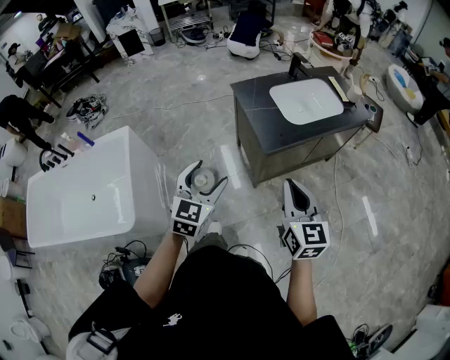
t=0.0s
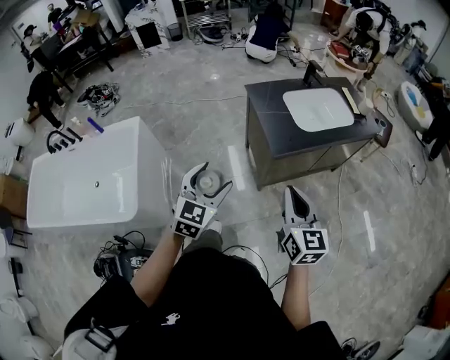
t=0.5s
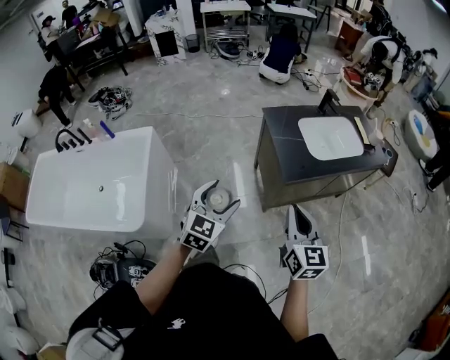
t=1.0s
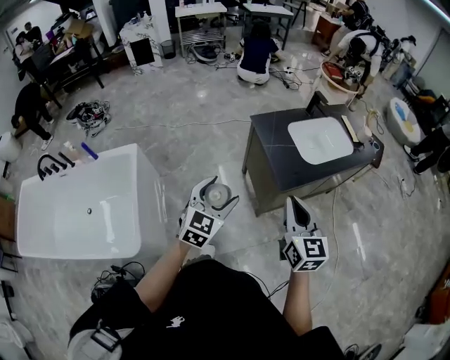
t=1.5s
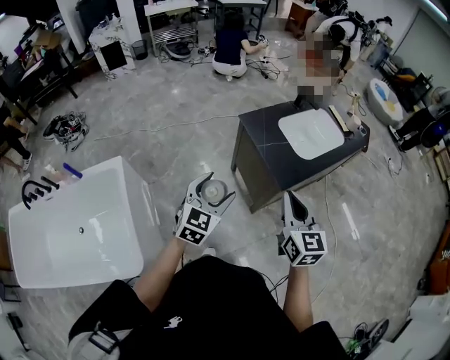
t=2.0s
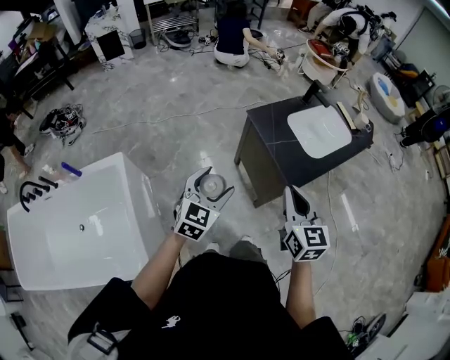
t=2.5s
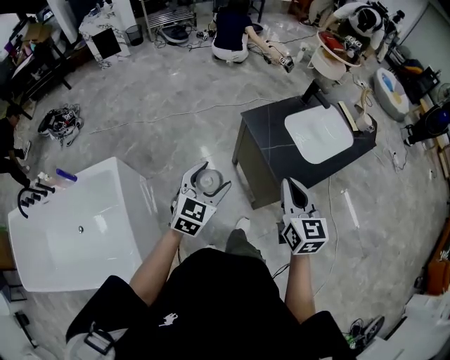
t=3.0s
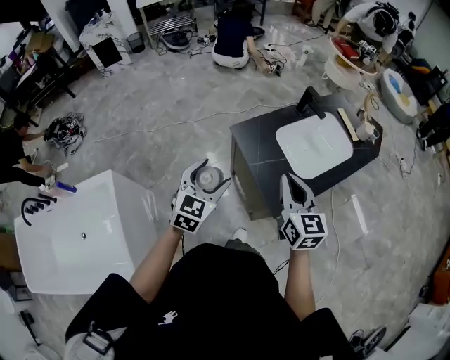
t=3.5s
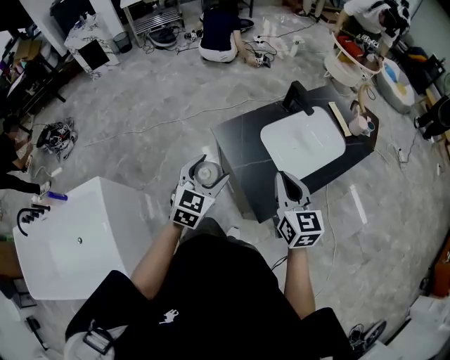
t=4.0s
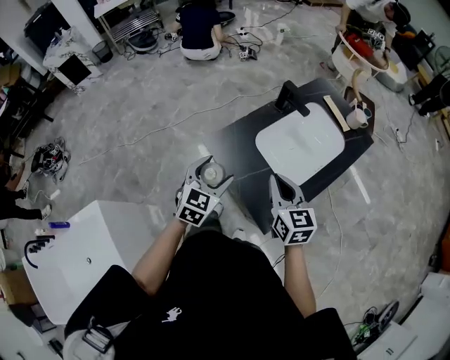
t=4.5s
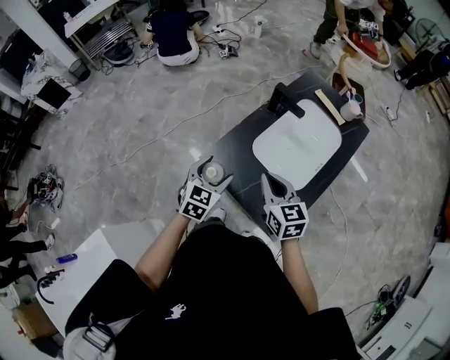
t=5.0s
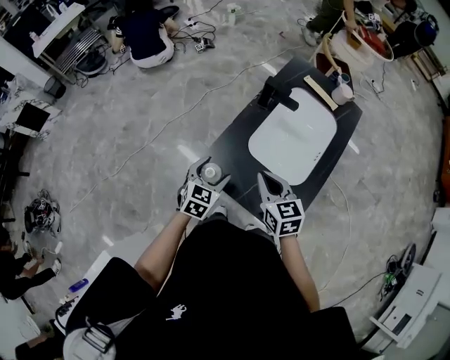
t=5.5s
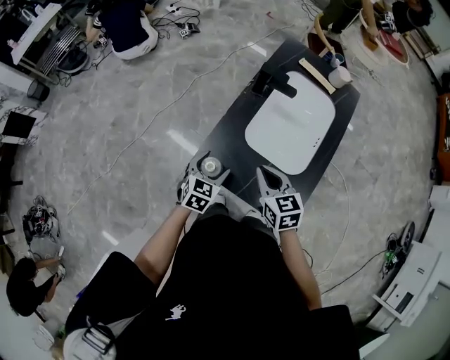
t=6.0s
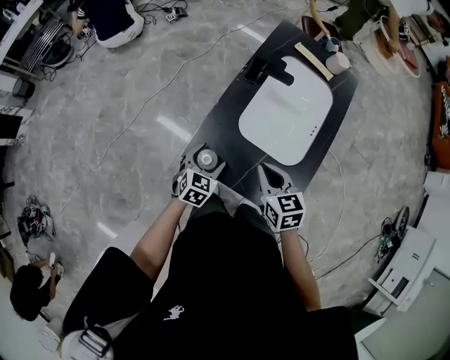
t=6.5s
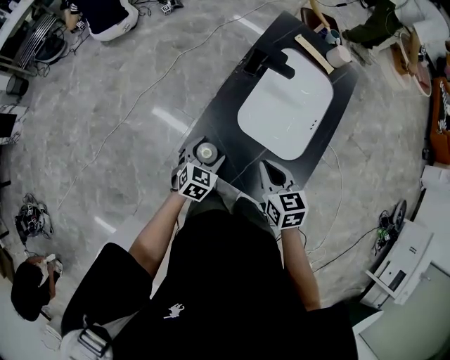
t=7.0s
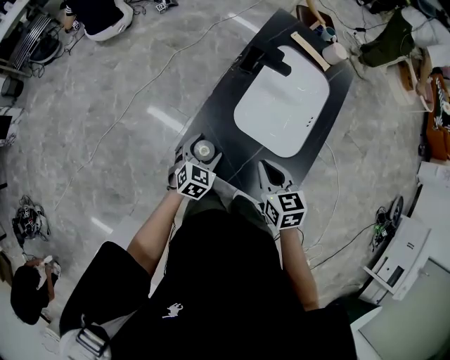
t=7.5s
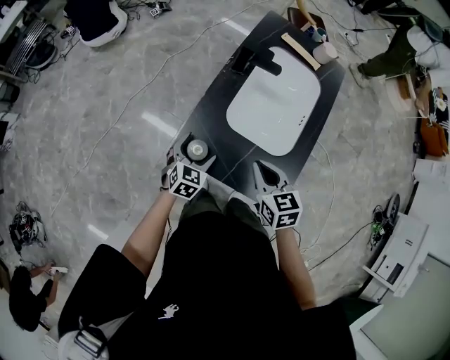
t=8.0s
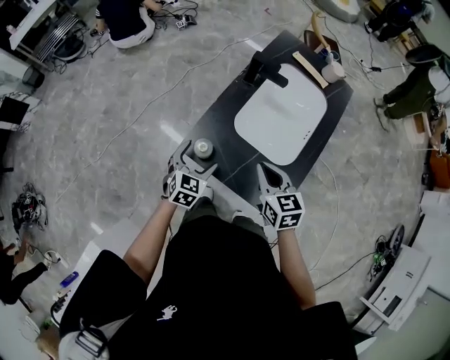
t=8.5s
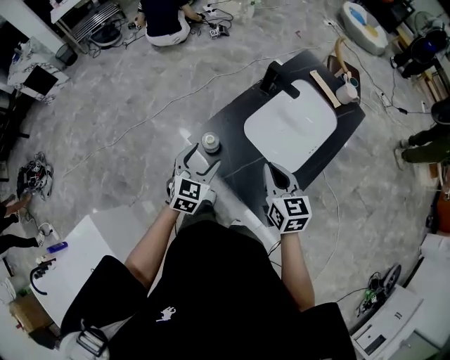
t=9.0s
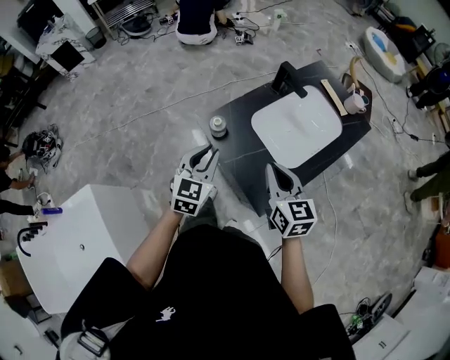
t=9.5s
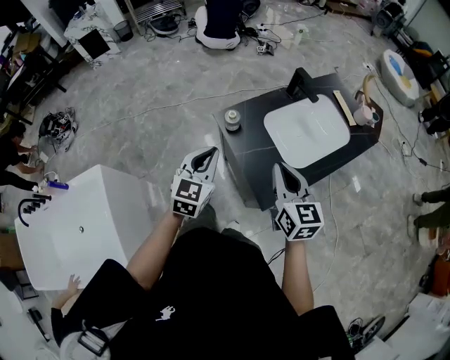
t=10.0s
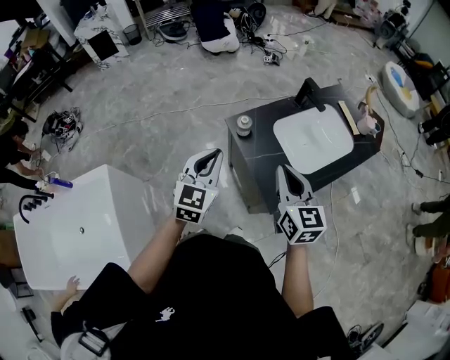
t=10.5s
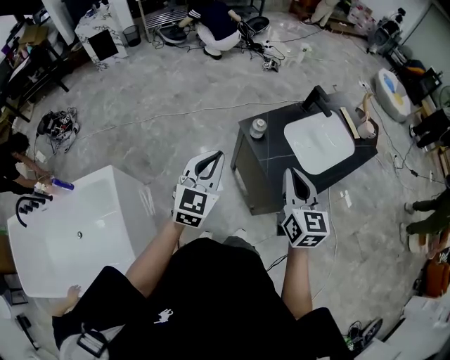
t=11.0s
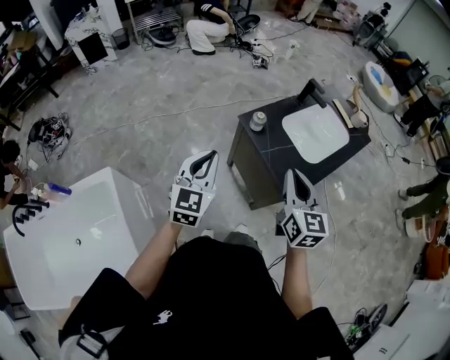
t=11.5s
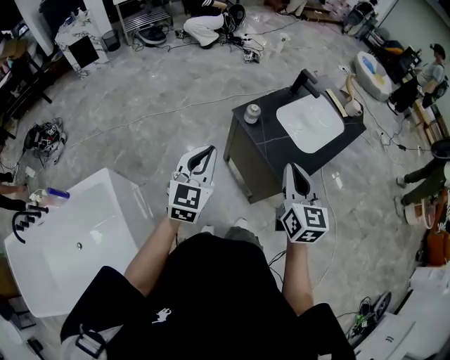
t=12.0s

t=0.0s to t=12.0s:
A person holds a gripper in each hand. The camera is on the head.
t=0.0s to t=2.0s: The right gripper shifts roughly 20 cm to the left and forward; the left gripper is displaced forward and to the left by some 20 cm.
t=2.0s to t=4.0s: Both grippers move forward, about 25 cm.
t=4.0s to t=6.0s: The left gripper ends up about 30 cm from where it was, and turns by approximately 30 degrees, while the right gripper changes place by roughly 20 cm, and swivels approximately 30 degrees.
t=6.0s to t=8.0s: The left gripper ends up approximately 5 cm from where it was.
t=8.0s to t=10.0s: The left gripper moves upward, some 25 cm, swivels about 40 degrees, and closes. Meanwhile the right gripper goes roughly 15 cm upward, and swivels about 40 degrees.
t=10.0s to t=12.0s: The left gripper shifts about 20 cm to the left, backward and upward. The right gripper travels backward, to the left and upward by about 20 cm.

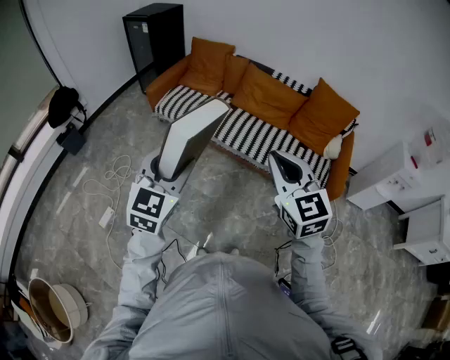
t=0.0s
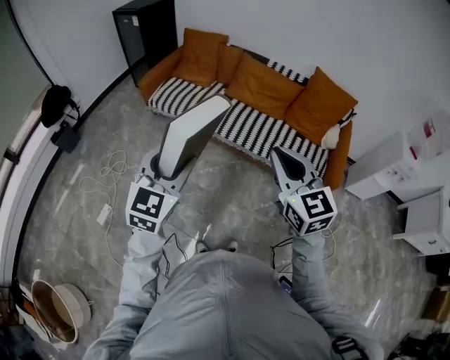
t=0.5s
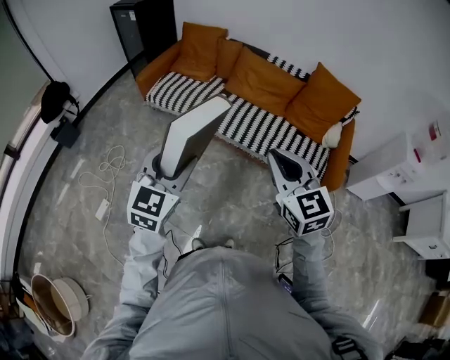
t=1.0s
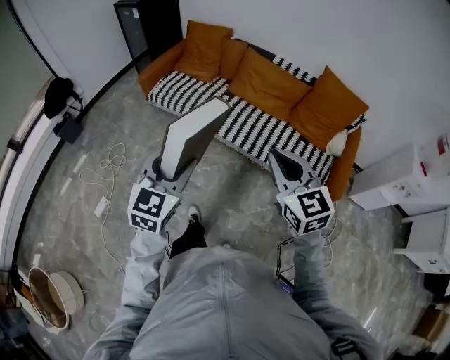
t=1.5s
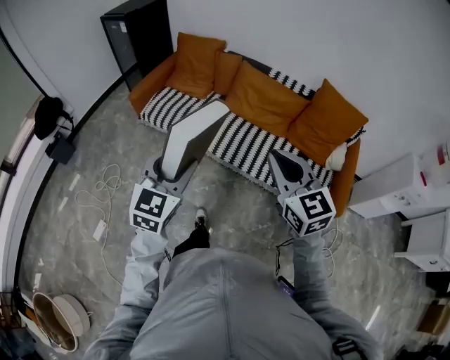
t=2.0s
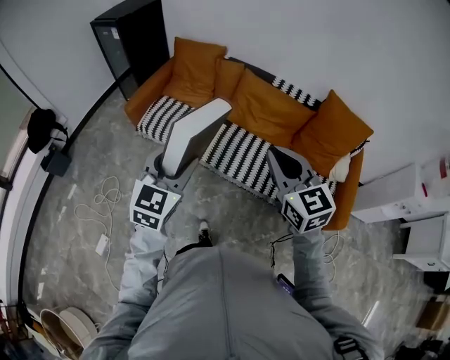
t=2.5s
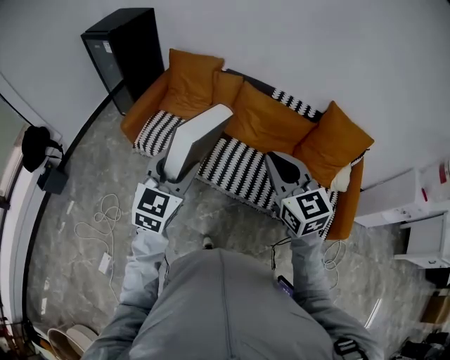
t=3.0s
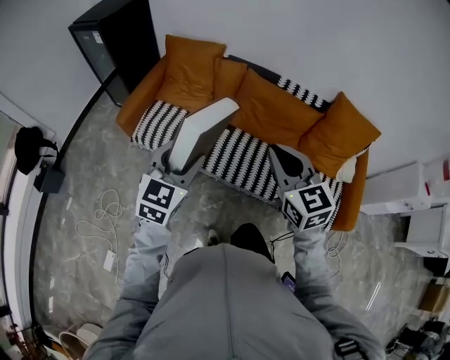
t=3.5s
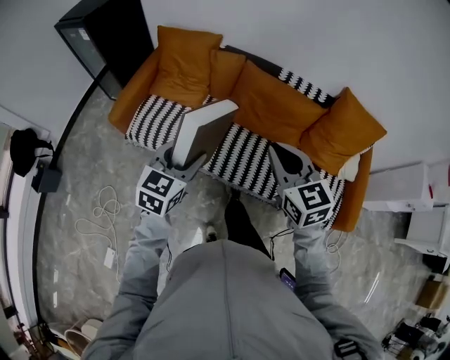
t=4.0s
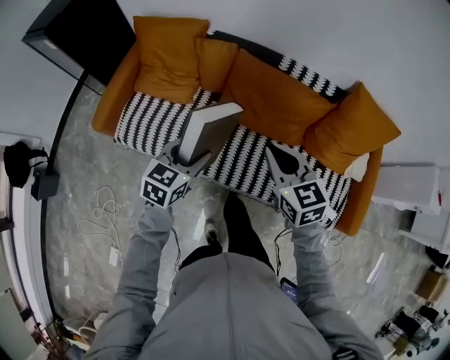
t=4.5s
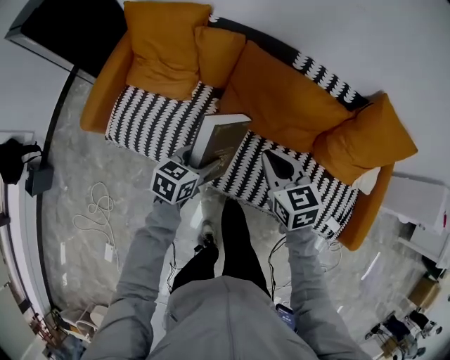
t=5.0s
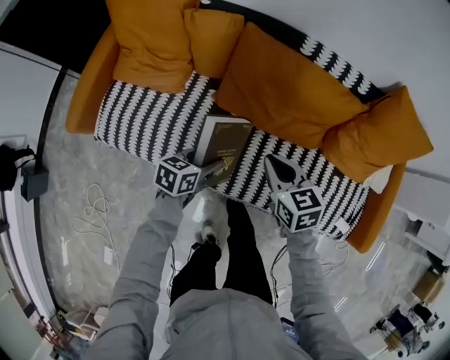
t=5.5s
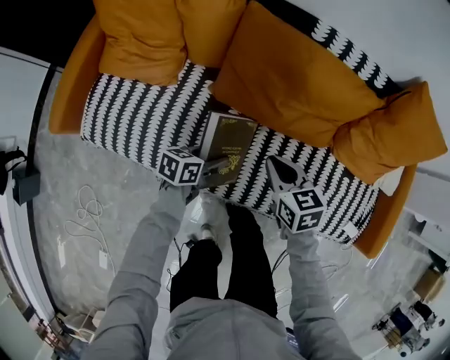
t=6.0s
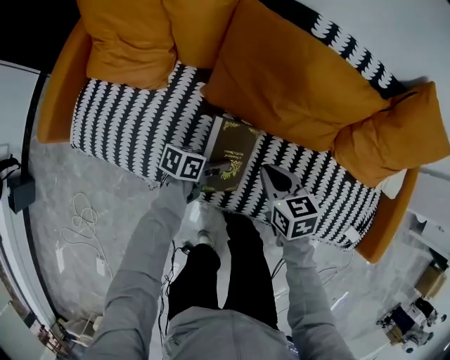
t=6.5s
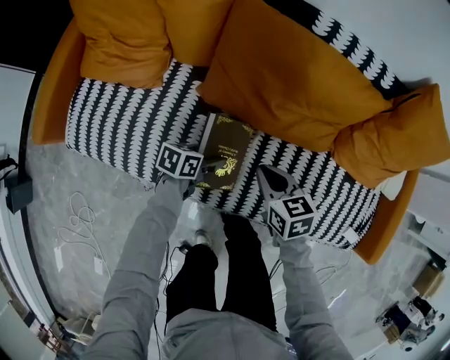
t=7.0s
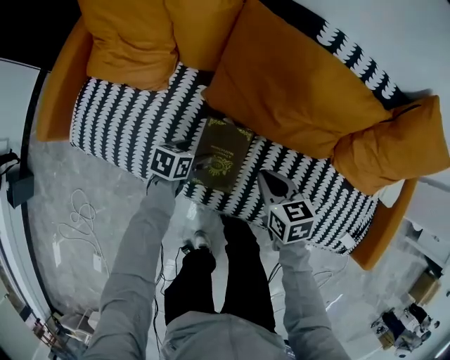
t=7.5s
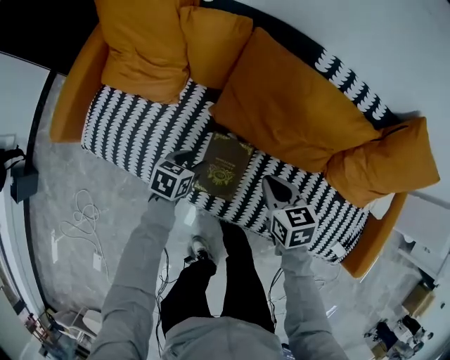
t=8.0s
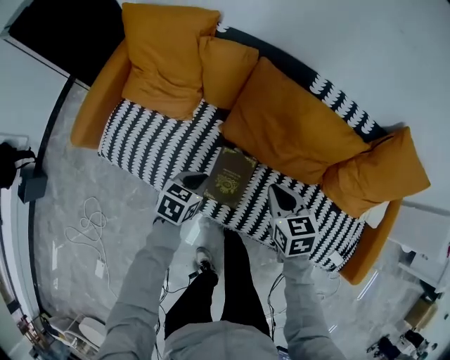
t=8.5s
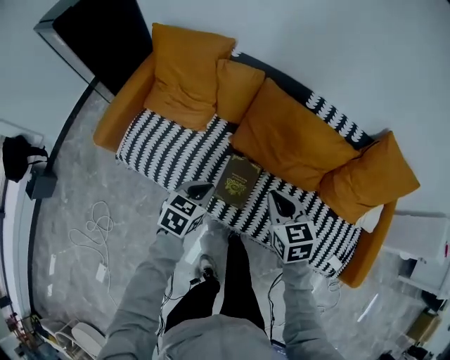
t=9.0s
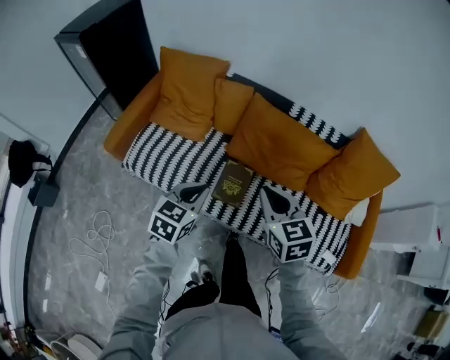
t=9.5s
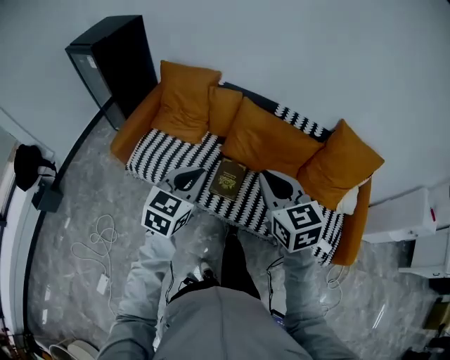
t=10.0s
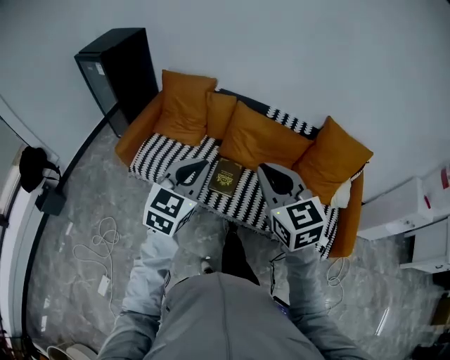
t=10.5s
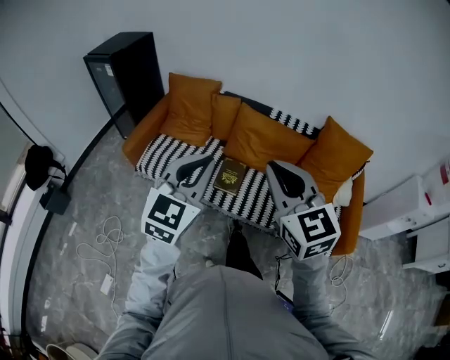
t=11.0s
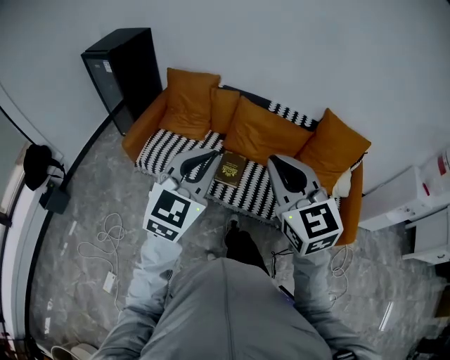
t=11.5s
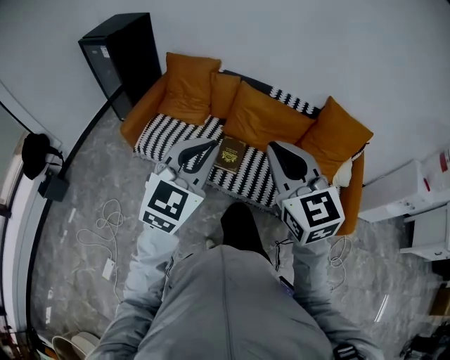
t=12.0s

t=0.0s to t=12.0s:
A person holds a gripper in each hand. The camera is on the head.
t=0.0s to t=2.0s: The two grippers go roughly 20 cm forward.
t=2.0s to t=4.0s: The two grippers go approximately 30 cm forward. The left gripper swivels approximately 20 degrees.
t=4.0s to t=6.0s: The left gripper shifts approximately 50 cm downward, and swivels approximately 50 degrees, while the right gripper is displaced downward and forward by roughly 50 cm, and swivels roughly 30 degrees.
t=6.0s to t=8.0s: The left gripper heads to the left, covering approximately 10 cm, and turns by roughly 20 degrees.
t=8.0s to t=10.0s: The grippers both shift upward and backward by approximately 50 cm. The right gripper turns by roughly 30 degrees; the left gripper swivels approximately 40 degrees, and closes its fingers.
t=10.0s to t=12.0s: The grippers both shift backward and upward by some 20 cm. The left gripper changes its angle by about 20 degrees.

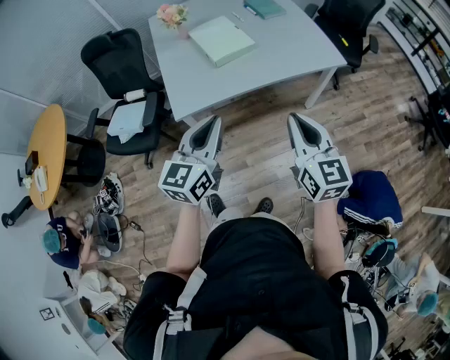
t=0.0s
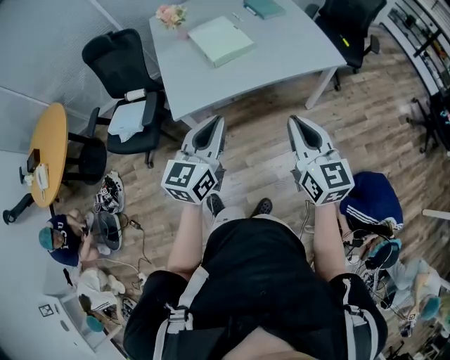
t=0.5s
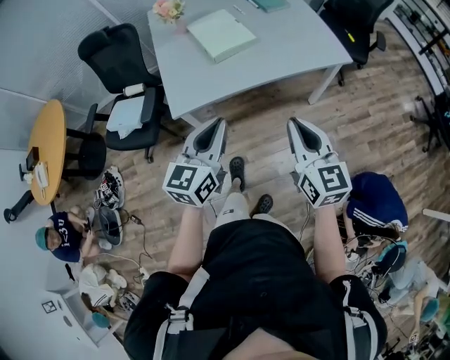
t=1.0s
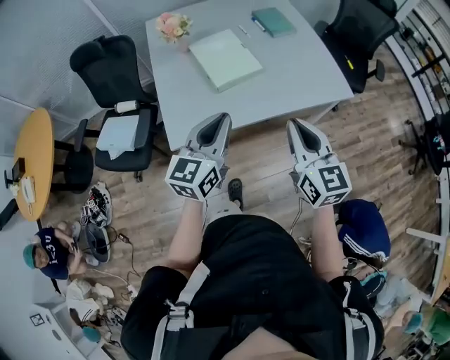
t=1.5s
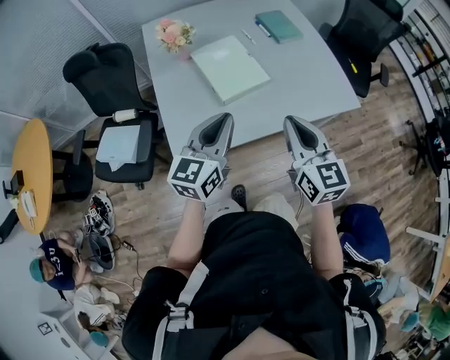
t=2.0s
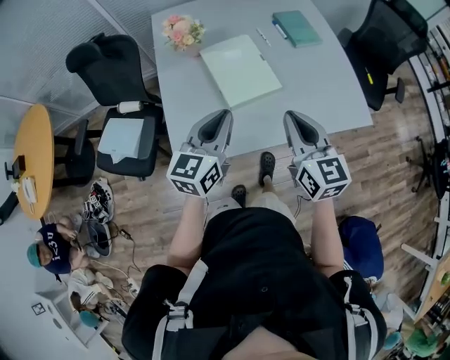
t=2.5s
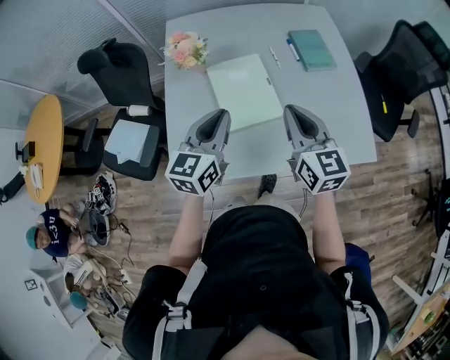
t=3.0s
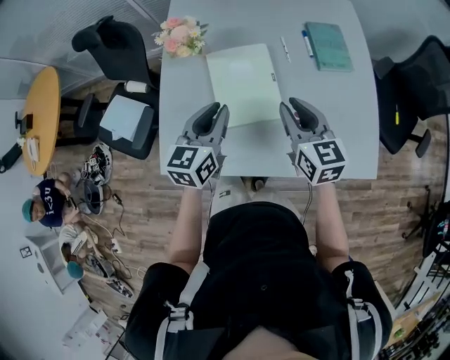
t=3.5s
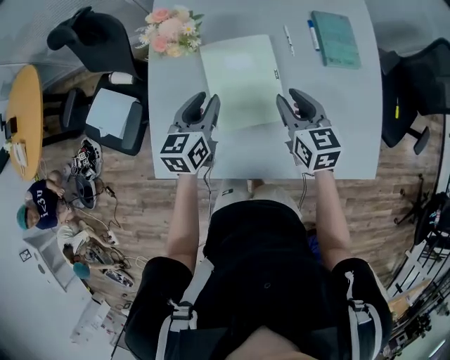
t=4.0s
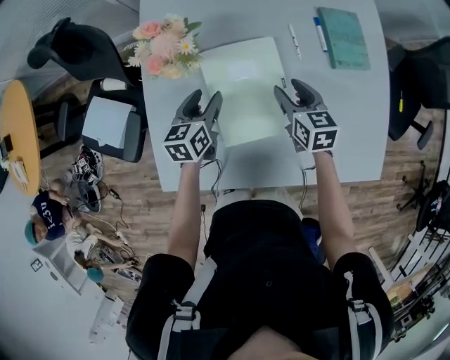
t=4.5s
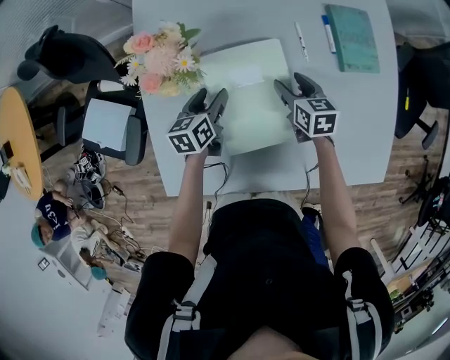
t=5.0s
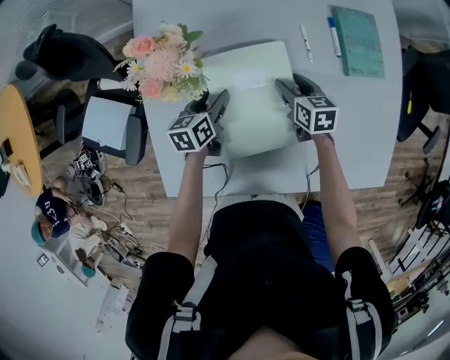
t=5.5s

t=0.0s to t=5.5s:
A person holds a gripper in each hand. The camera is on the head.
t=0.0s to t=2.0s: The two grippers go roughly 30 cm forward.
t=2.0s to t=3.5s: The two grippers go roughly 30 cm forward. The right gripper swivels roughly 20 degrees, while the left gripper swivels about 30 degrees.
t=3.5s to t=5.5s: Both grippers move downward and forward, about 35 cm. The right gripper changes its angle by some 30 degrees, and opens up. The left gripper swivels approximately 30 degrees, and opens up.
